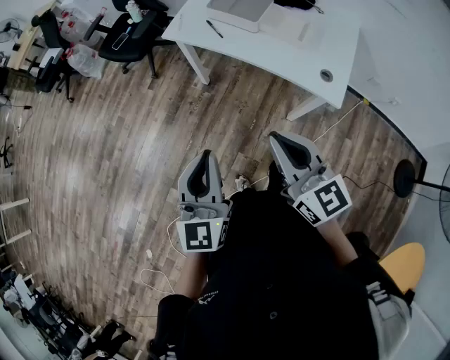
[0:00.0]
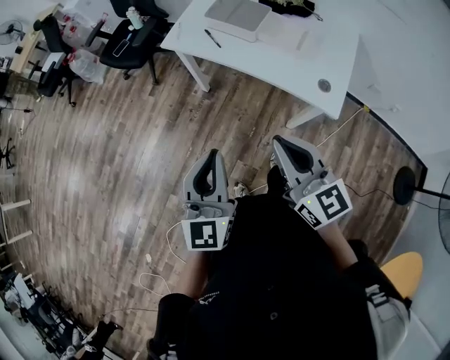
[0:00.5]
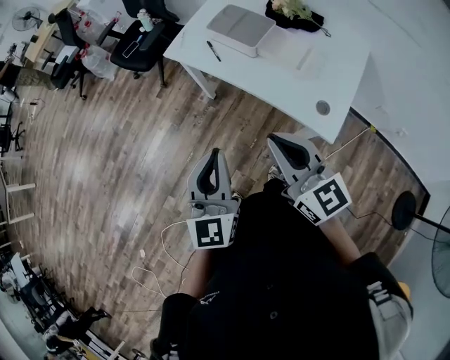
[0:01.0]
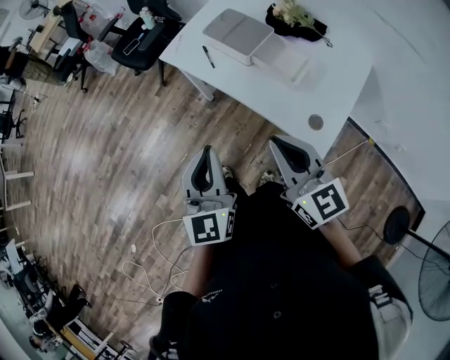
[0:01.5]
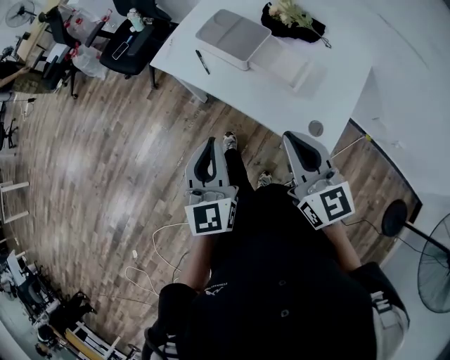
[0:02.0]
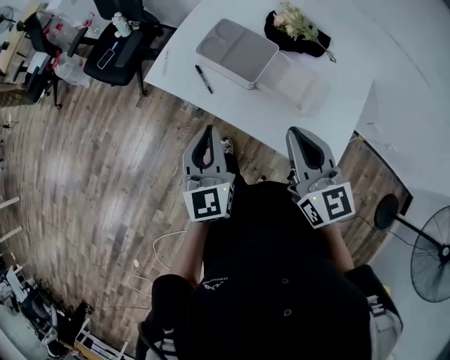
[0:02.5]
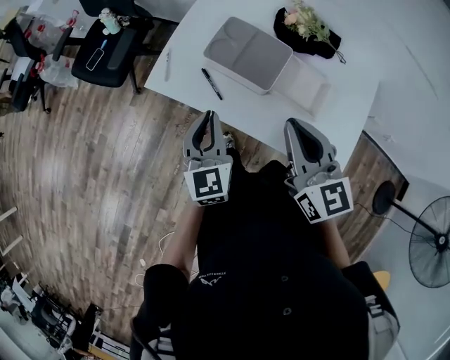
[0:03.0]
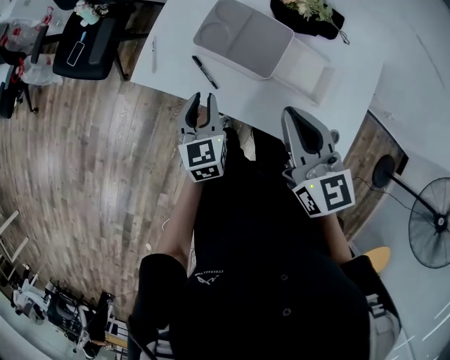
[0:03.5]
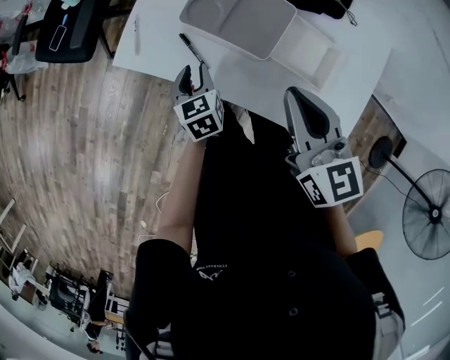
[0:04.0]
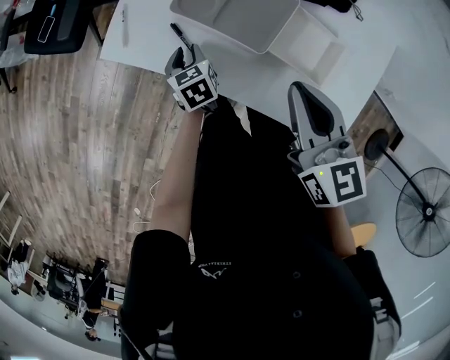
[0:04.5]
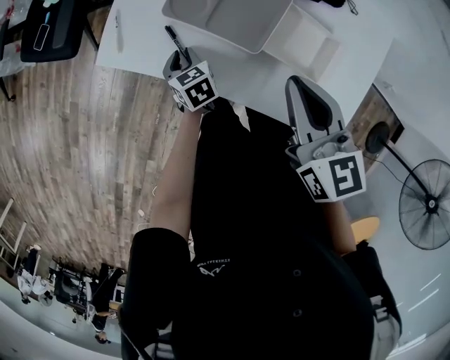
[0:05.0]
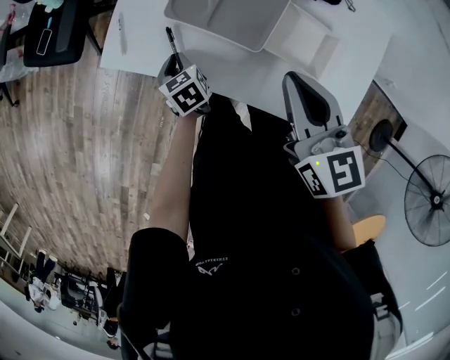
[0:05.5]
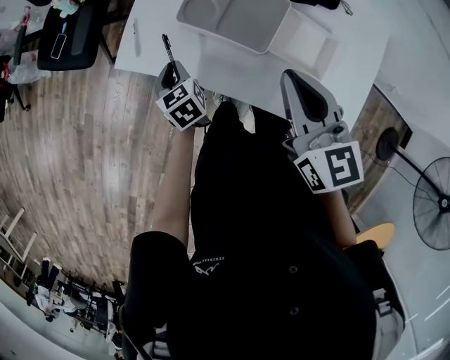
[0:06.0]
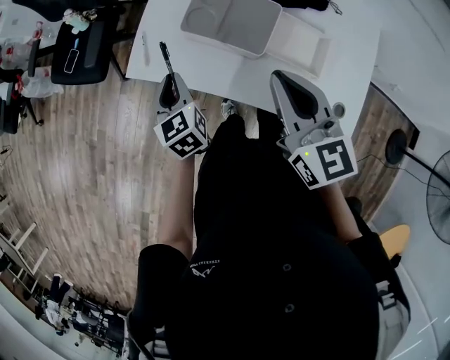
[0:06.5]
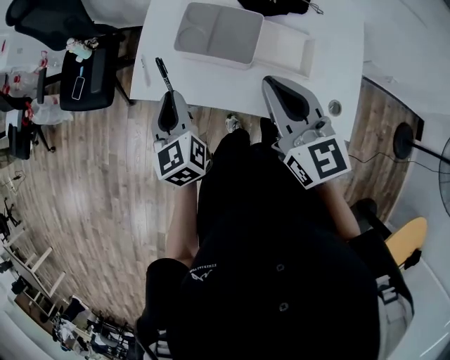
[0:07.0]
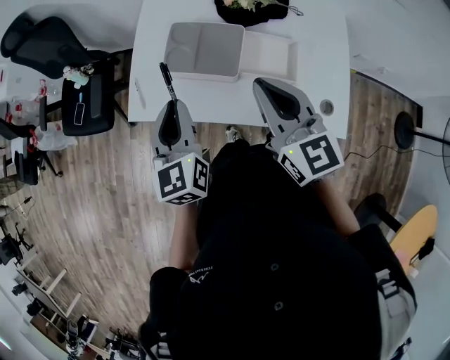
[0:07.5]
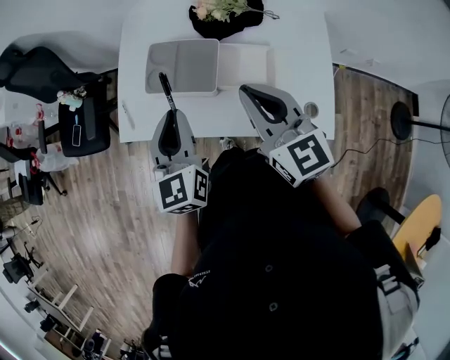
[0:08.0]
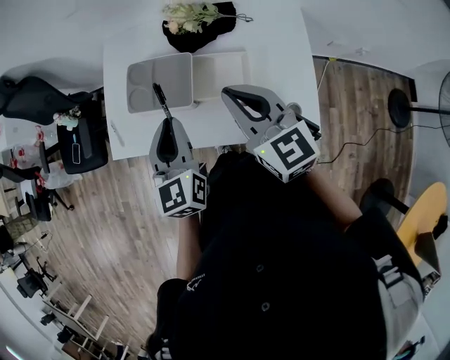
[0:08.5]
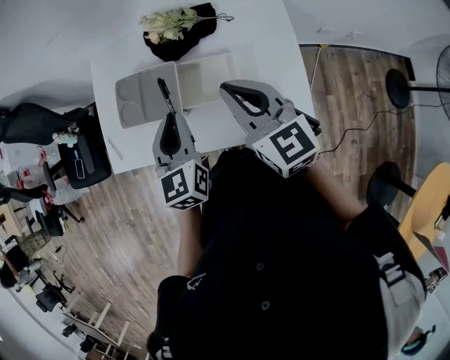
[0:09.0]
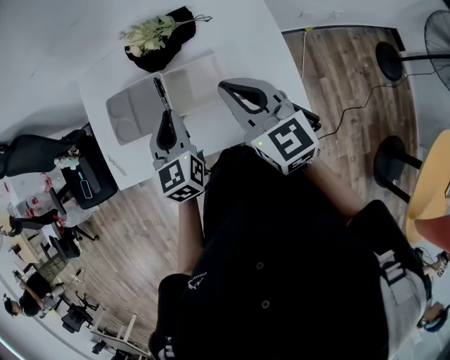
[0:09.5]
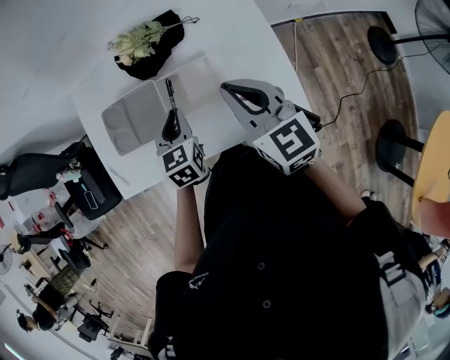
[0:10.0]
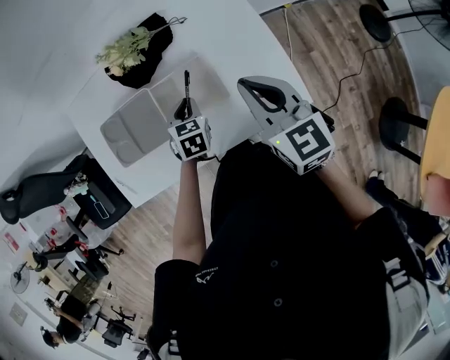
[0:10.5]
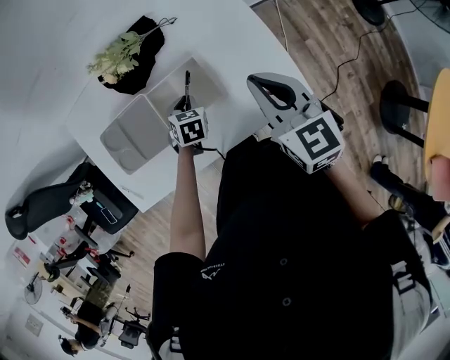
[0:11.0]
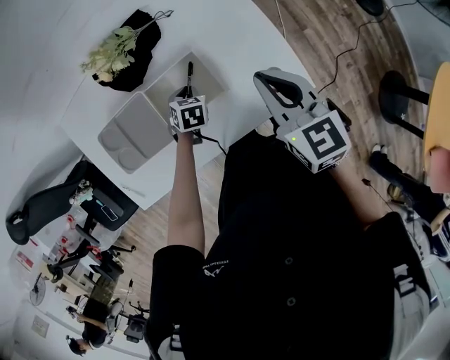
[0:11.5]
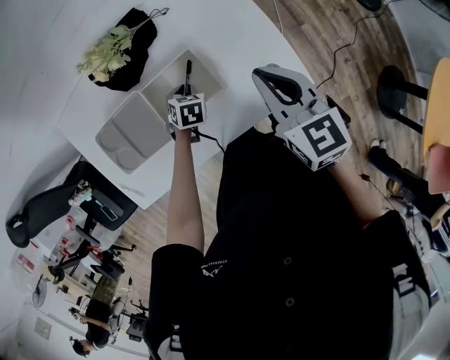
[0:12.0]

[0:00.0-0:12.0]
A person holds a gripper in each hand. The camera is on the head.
0:00.0 to 0:02.0: Both grippers move to the right and forward, roughly 30 cm.
0:02.0 to 0:04.0: The right gripper goes roughly 30 cm forward, and turns by roughly 20 degrees. The left gripper travels forward and downward by about 50 cm, angles its fingers downward, by about 40 degrees, and opens.
0:04.0 to 0:06.0: The left gripper goes about 5 cm to the left, and travels downward and back again, roughly 10 cm each way.
0:06.0 to 0:08.0: The right gripper travels to the right and upward by approximately 10 cm; the left gripper shifts about 30 cm upward and to the right, and tilts its fingers approximately 30 degrees upward.
0:08.0 to 0:10.0: The right gripper is displaced to the right by approximately 15 cm. Meanwhile the left gripper travels to the right, downward and forward by approximately 25 cm, and turns by about 30 degrees.
0:10.0 to 0:12.0: The left gripper moves downward, about 20 cm, and points its fingers about 30 degrees further downward, while the right gripper heads to the right and downward, covering roughly 10 cm.

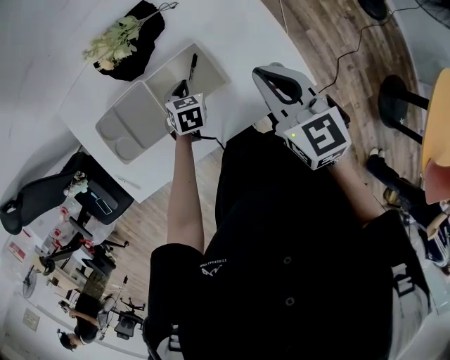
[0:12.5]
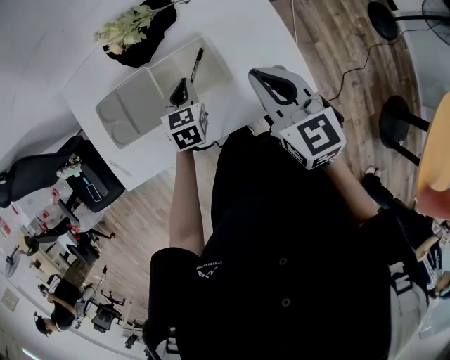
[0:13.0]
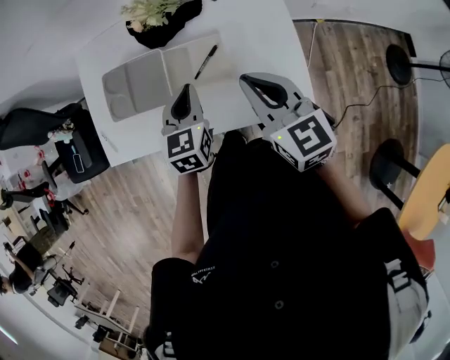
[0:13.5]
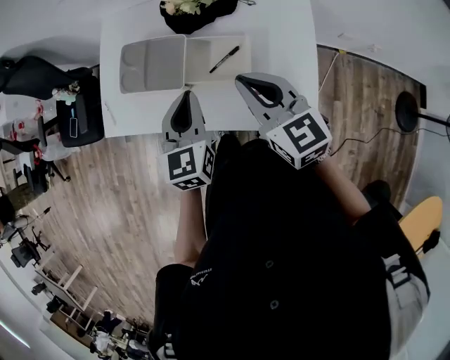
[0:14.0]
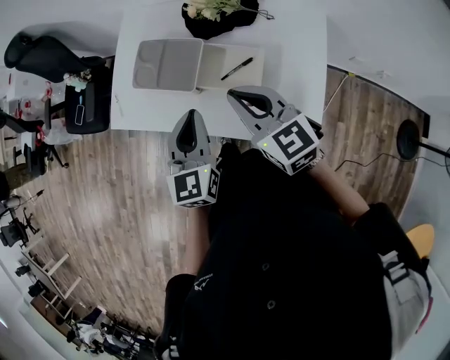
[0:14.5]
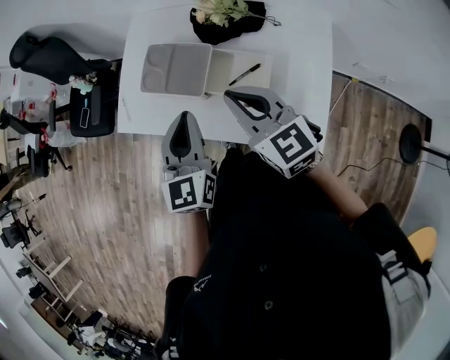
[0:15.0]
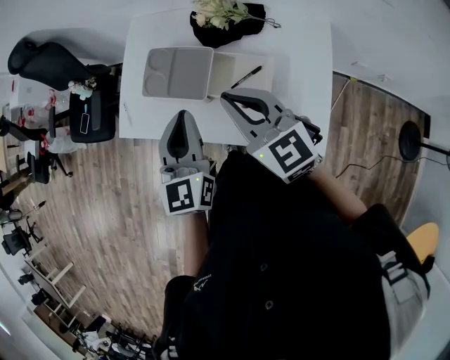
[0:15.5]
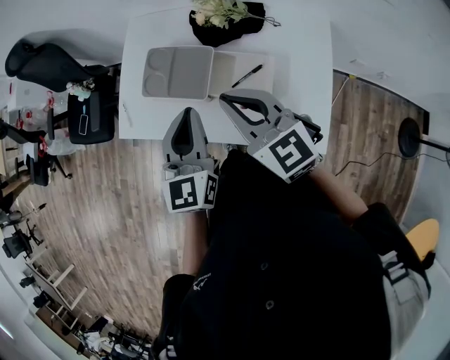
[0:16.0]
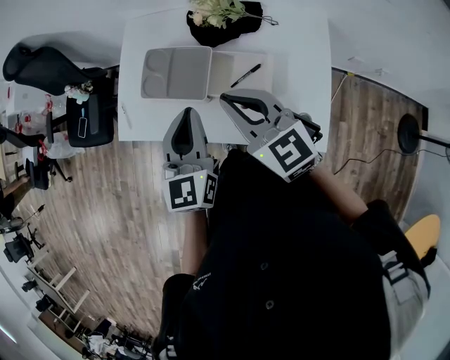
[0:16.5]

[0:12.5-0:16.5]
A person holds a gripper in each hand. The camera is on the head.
0:12.5 to 0:14.5: The left gripper is displaced upward by roughly 25 cm, and angles its fingers upward, by some 40 degrees. The right gripper ends up roughly 15 cm from where it was, and rotates approximately 50 degrees.
0:14.5 to 0:16.5: The right gripper travels to the left by some 5 cm; the left gripper moves approximately 5 cm.

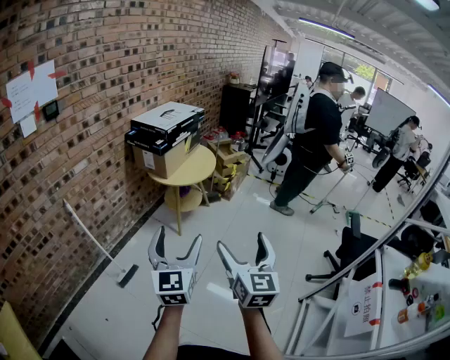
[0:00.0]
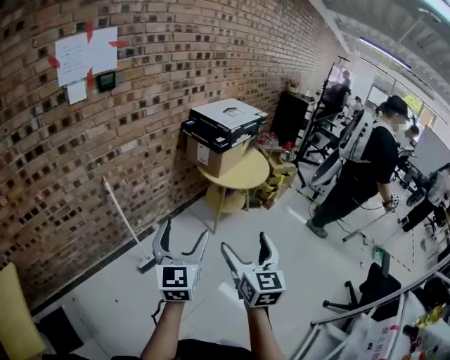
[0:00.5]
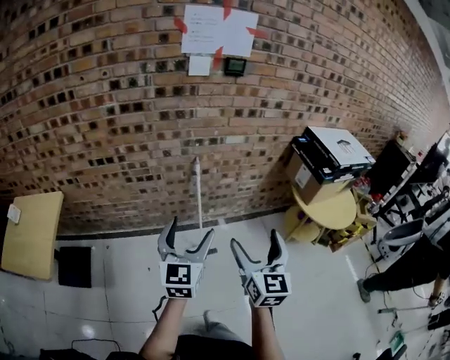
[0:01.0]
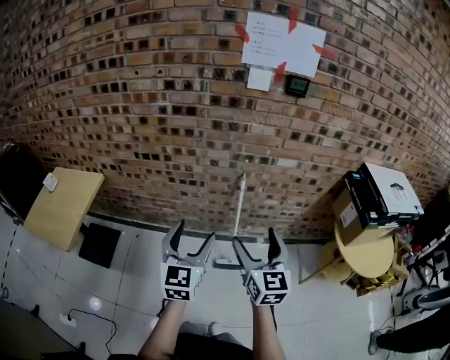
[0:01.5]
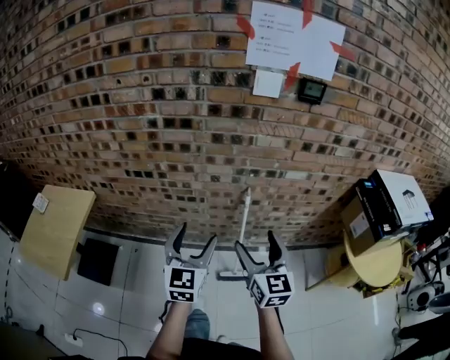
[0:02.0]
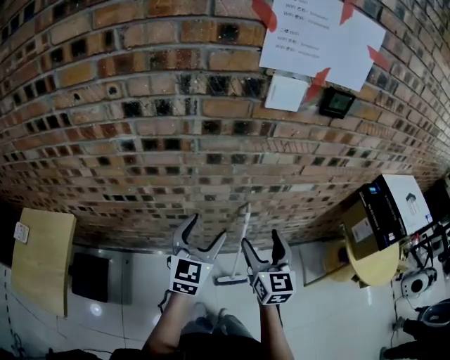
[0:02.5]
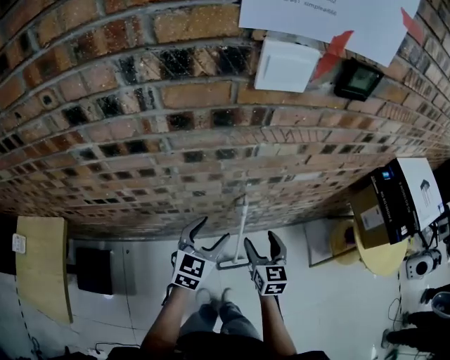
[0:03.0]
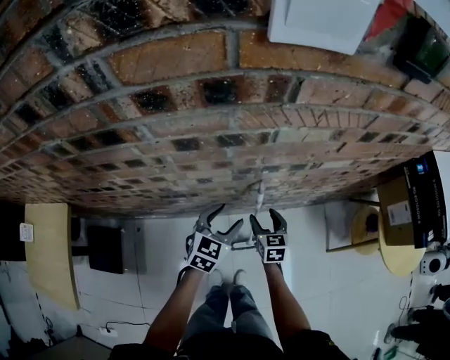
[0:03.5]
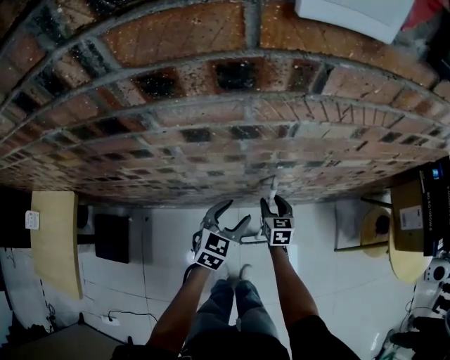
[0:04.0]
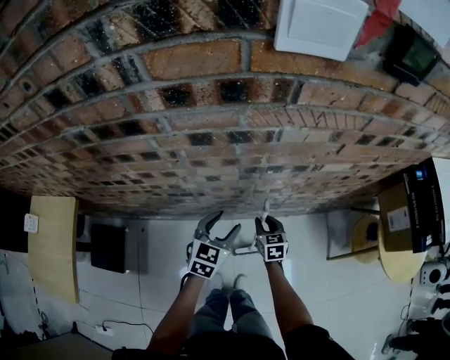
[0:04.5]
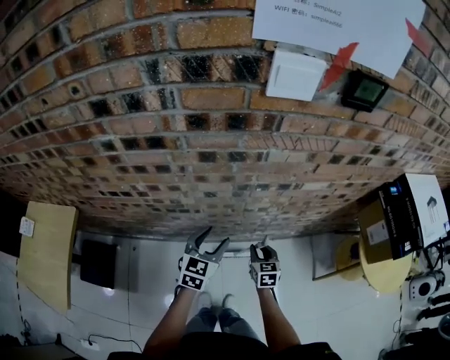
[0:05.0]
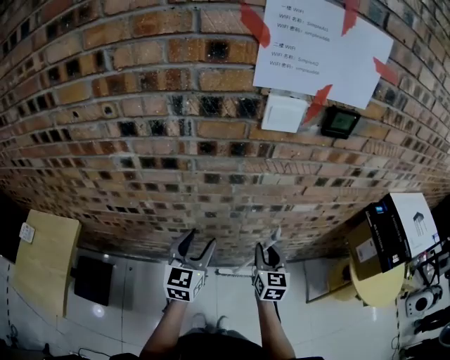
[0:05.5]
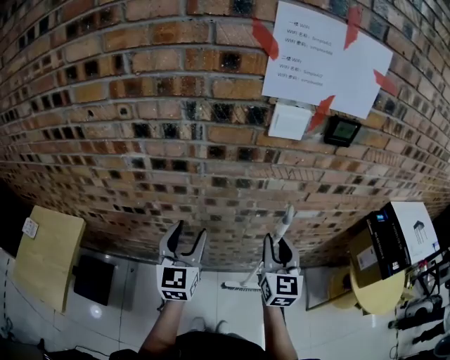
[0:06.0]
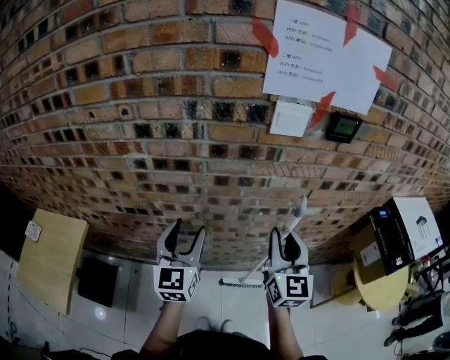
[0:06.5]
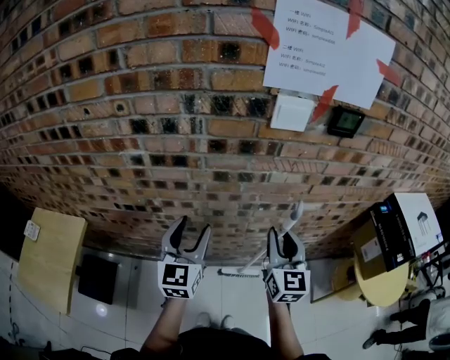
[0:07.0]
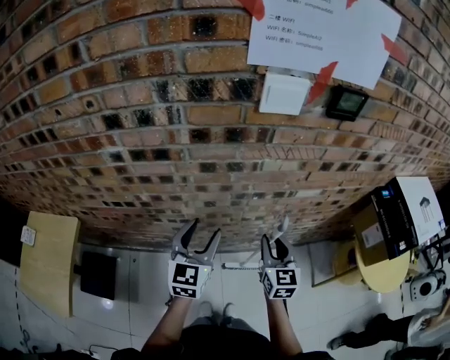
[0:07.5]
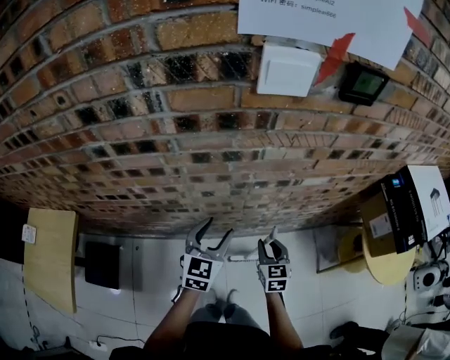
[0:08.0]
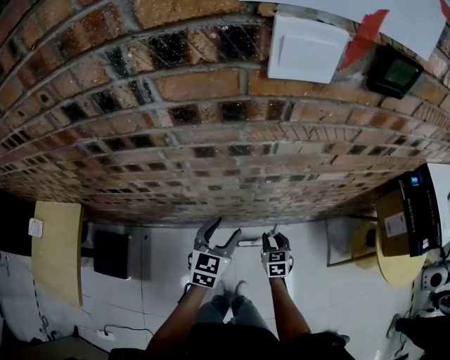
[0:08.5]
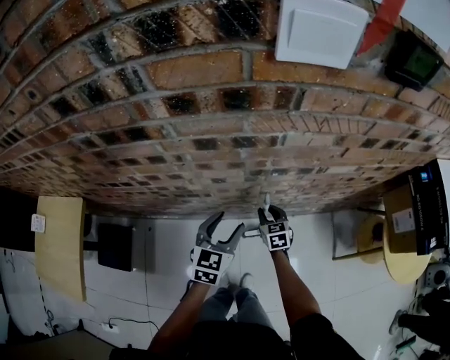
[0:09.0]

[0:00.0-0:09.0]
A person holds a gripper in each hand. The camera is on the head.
0:00.0 to 0:02.0: The pair of grippers is taken roughly 70 cm. The left gripper turns by approximately 60 degrees, while the right gripper changes its angle by roughly 70 degrees.
0:02.0 to 0:04.5: The right gripper is displaced downward and forward by about 50 cm, angles its fingers downward, by roughly 30 degrees, and closes up; the left gripper is displaced forward and downward by some 35 cm, and rotates about 30 degrees.
0:04.5 to 0:07.0: The right gripper shifts some 40 cm upward, and points its fingers some 40 degrees further upward. Meanwhile the left gripper is displaced upward by about 25 cm, and rotates some 40 degrees.
0:07.0 to 0:09.0: The right gripper shifts about 40 cm downward, and tilts its fingers some 40 degrees downward. The left gripper is displaced downward and to the right by some 25 cm, and turns by approximately 30 degrees.

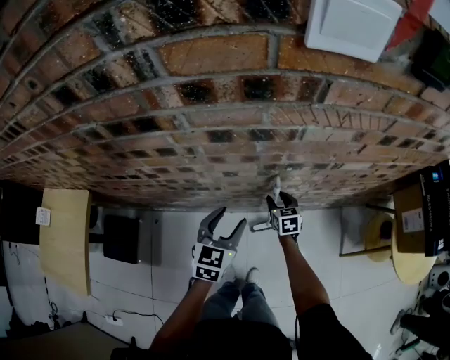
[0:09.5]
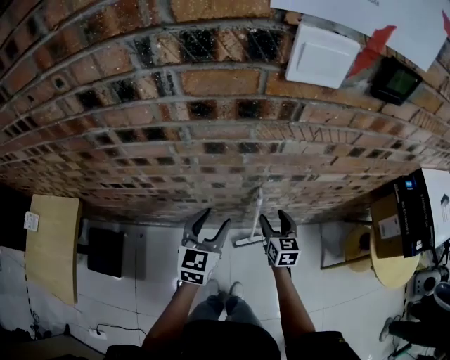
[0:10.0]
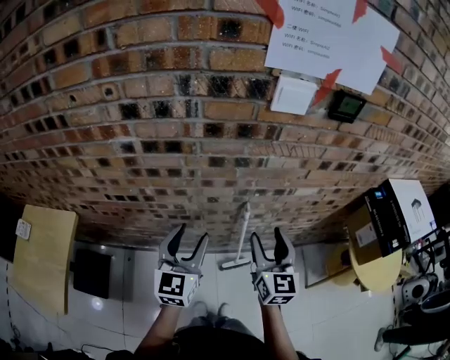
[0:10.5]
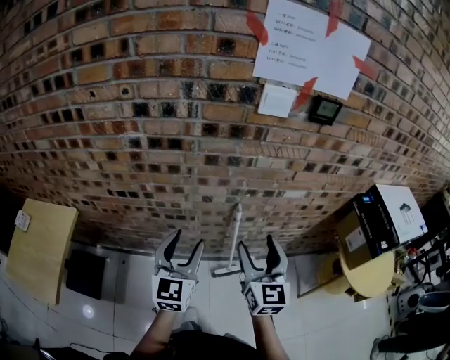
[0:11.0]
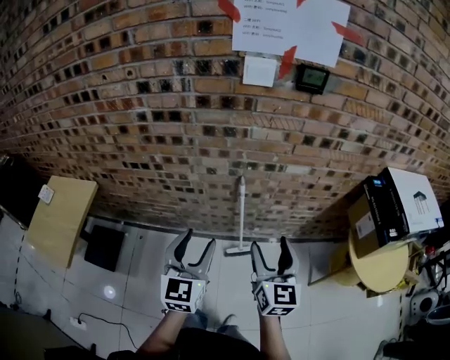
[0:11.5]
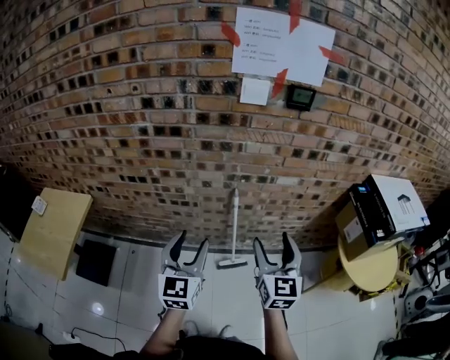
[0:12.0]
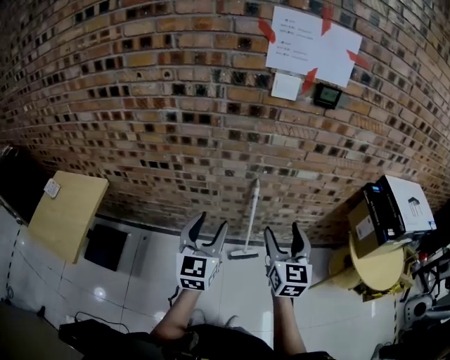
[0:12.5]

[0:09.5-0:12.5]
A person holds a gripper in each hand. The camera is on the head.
0:09.5 to 0:11.0: The left gripper is displaced upward and backward by roughly 25 cm, and turns by roughly 30 degrees, while the right gripper goes roughly 50 cm upward and backward, and tips its fingers upward by roughly 40 degrees.
0:11.0 to 0:12.5: The left gripper moves backward, approximately 10 cm. Meanwhile the right gripper moves backward and to the right, roughly 10 cm.
